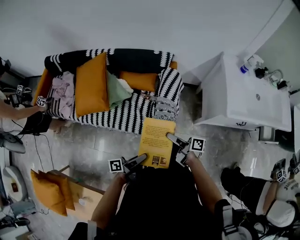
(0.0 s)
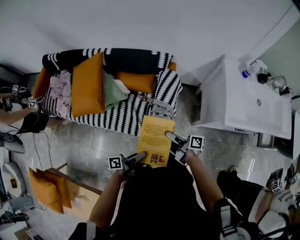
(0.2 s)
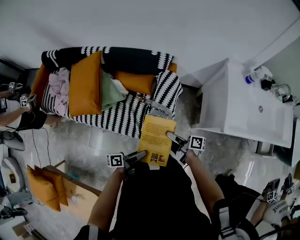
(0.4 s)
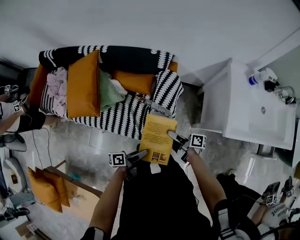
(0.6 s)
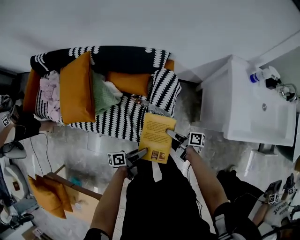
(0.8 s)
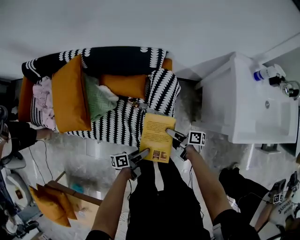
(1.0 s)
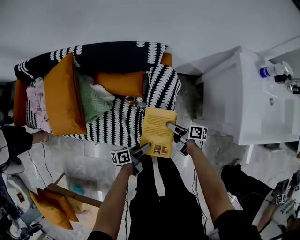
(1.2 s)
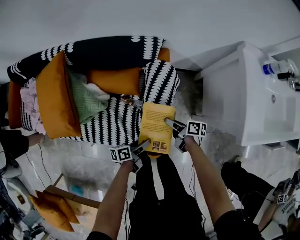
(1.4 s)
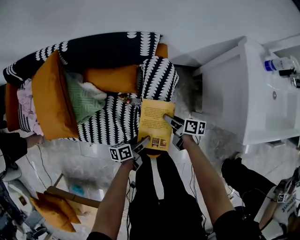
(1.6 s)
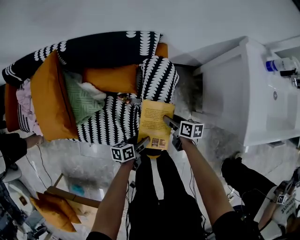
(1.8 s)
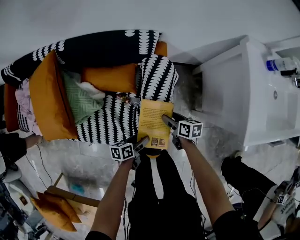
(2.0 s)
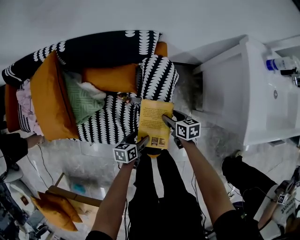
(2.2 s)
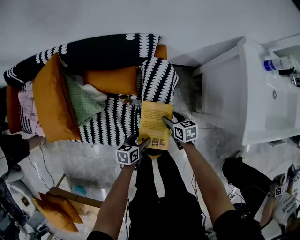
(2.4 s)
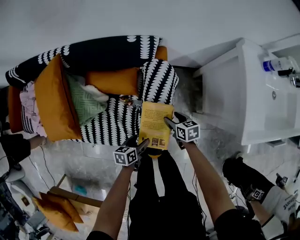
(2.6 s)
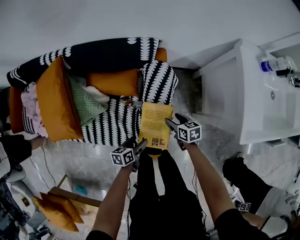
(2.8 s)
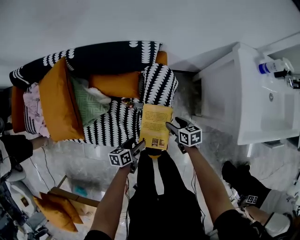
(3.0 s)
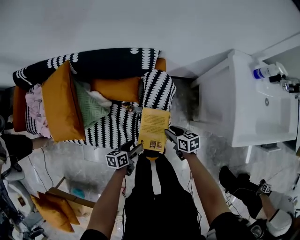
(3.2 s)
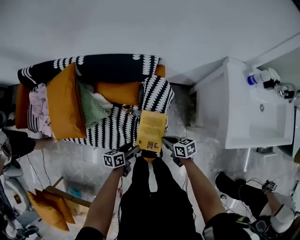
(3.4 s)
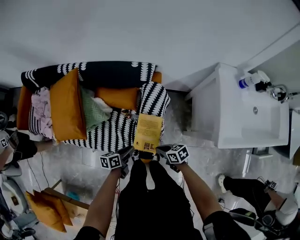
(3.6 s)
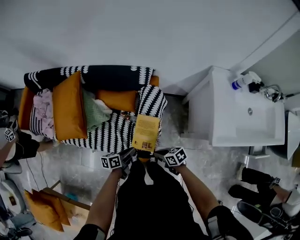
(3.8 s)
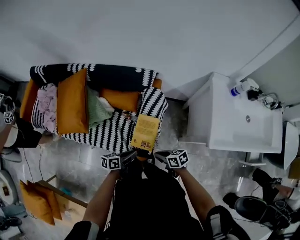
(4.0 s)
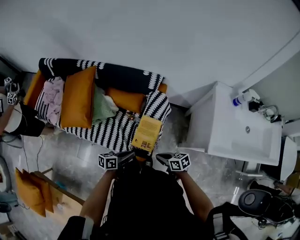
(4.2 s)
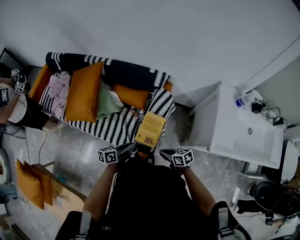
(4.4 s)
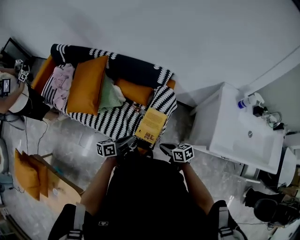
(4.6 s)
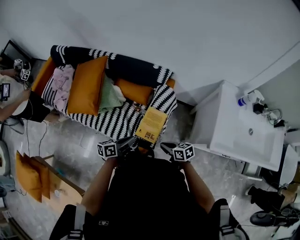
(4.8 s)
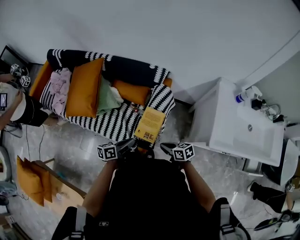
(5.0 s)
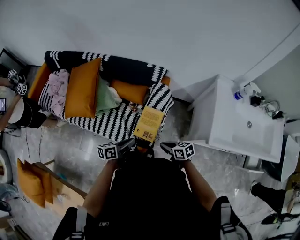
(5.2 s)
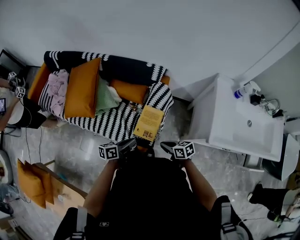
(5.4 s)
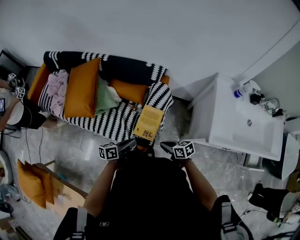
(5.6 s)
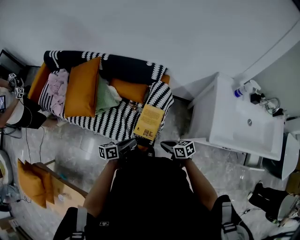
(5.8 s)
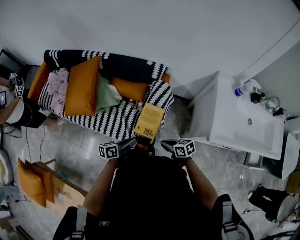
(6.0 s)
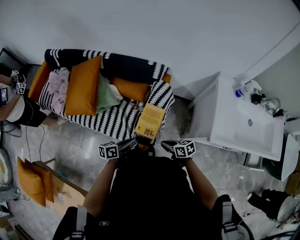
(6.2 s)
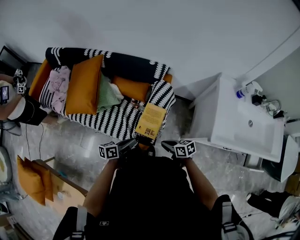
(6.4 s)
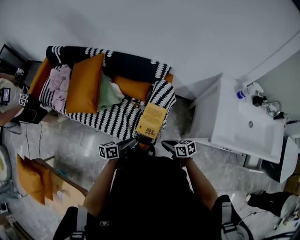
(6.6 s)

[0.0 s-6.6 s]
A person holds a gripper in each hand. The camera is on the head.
0.0 to 1.6 s: The right gripper travels downward by about 25 cm, and swivels some 30 degrees.
1.6 to 3.2 s: The right gripper shifts some 5 cm upward, and rotates some 30 degrees.
3.2 to 5.0 s: The right gripper moves upward, roughly 15 cm, turns by roughly 20 degrees, and closes up.

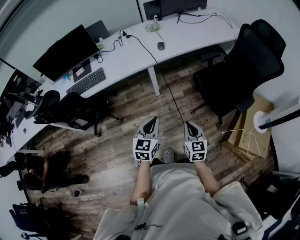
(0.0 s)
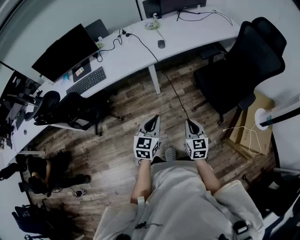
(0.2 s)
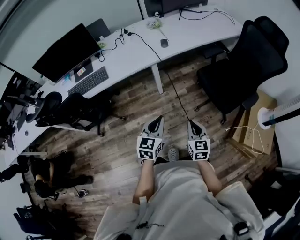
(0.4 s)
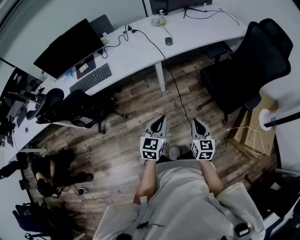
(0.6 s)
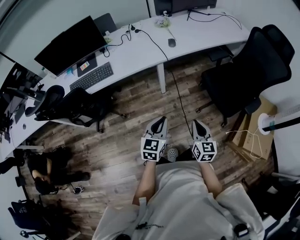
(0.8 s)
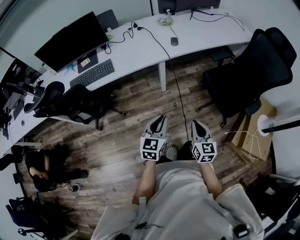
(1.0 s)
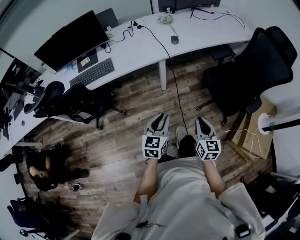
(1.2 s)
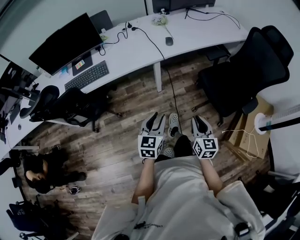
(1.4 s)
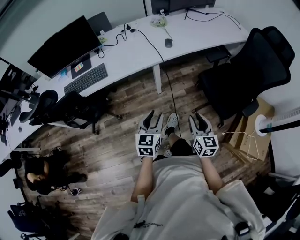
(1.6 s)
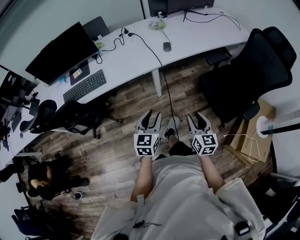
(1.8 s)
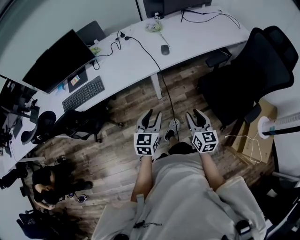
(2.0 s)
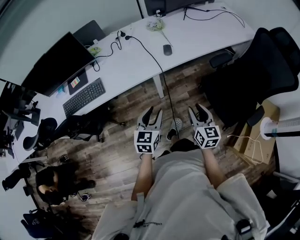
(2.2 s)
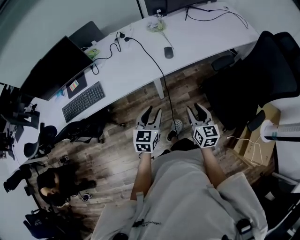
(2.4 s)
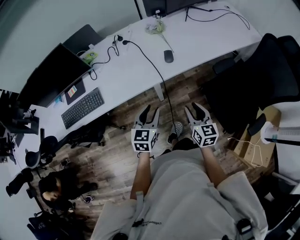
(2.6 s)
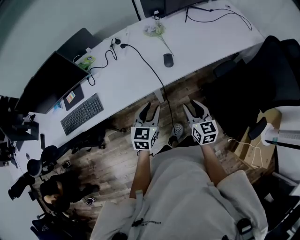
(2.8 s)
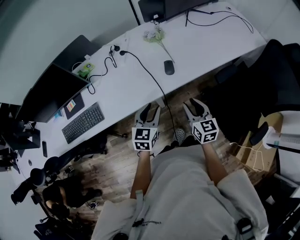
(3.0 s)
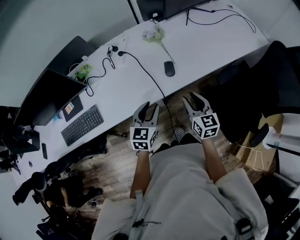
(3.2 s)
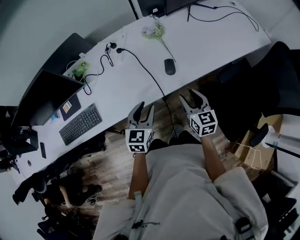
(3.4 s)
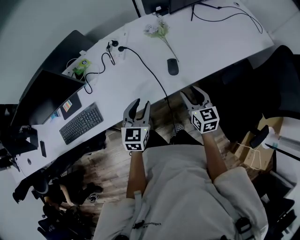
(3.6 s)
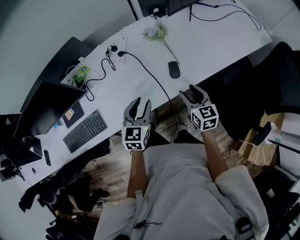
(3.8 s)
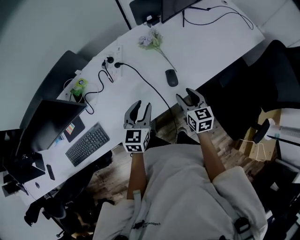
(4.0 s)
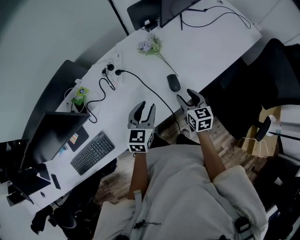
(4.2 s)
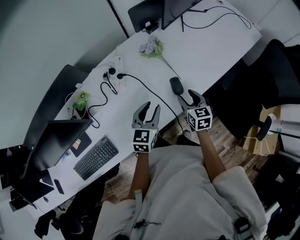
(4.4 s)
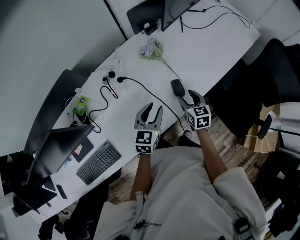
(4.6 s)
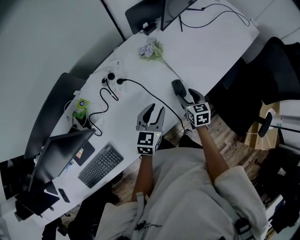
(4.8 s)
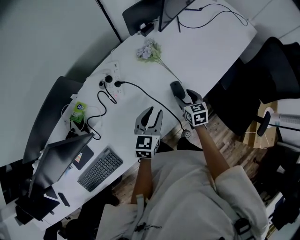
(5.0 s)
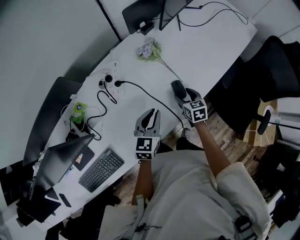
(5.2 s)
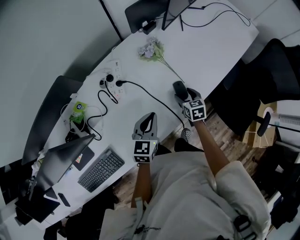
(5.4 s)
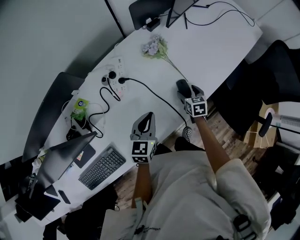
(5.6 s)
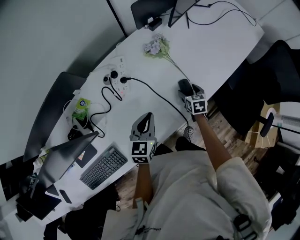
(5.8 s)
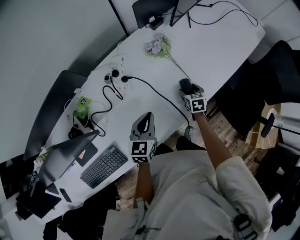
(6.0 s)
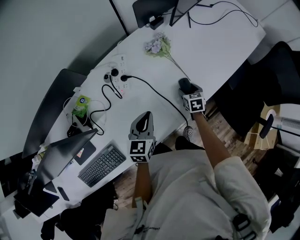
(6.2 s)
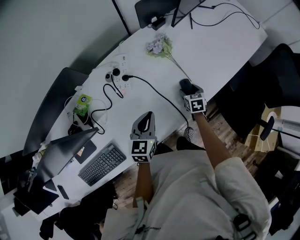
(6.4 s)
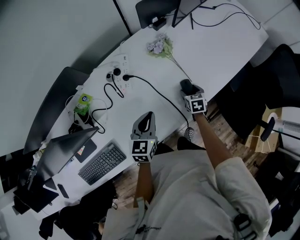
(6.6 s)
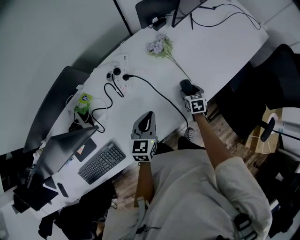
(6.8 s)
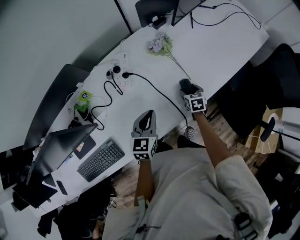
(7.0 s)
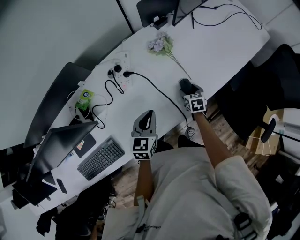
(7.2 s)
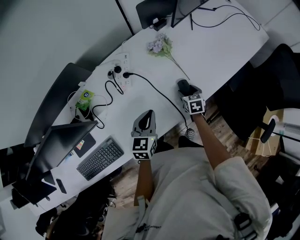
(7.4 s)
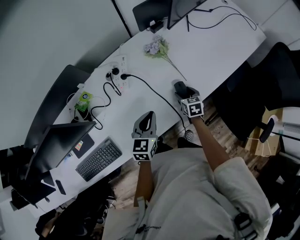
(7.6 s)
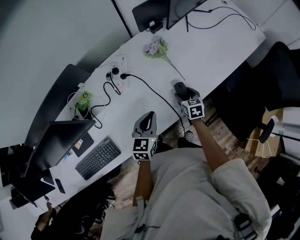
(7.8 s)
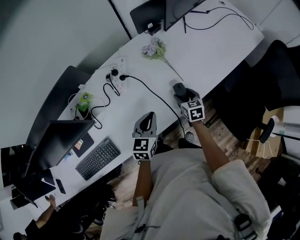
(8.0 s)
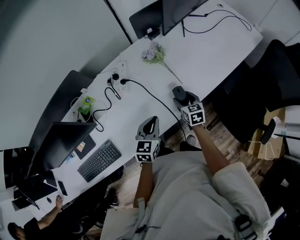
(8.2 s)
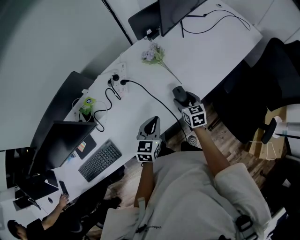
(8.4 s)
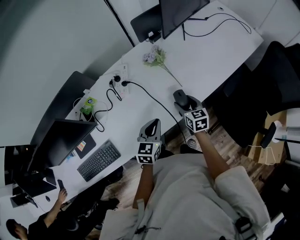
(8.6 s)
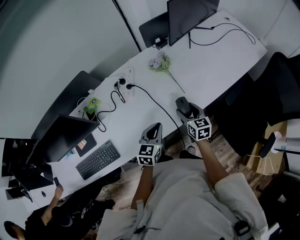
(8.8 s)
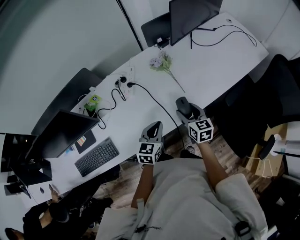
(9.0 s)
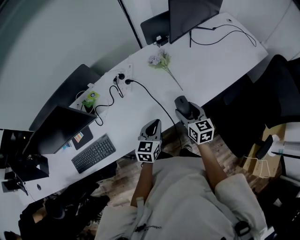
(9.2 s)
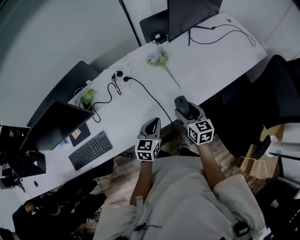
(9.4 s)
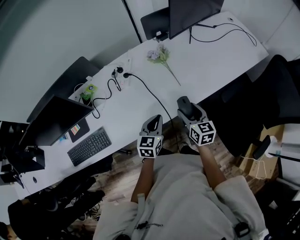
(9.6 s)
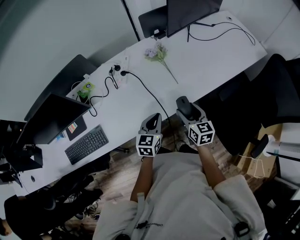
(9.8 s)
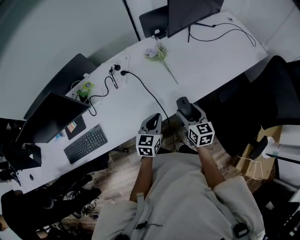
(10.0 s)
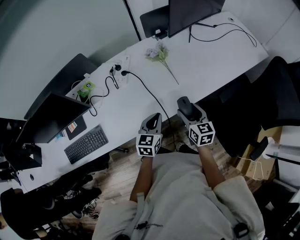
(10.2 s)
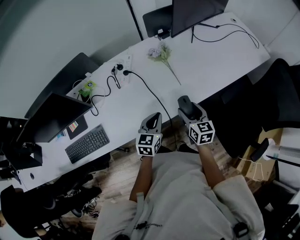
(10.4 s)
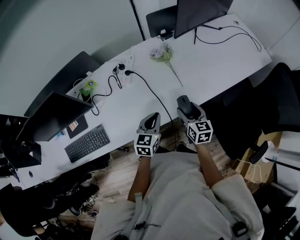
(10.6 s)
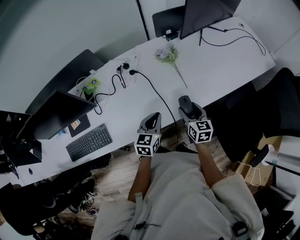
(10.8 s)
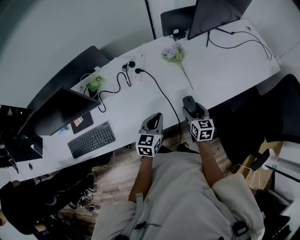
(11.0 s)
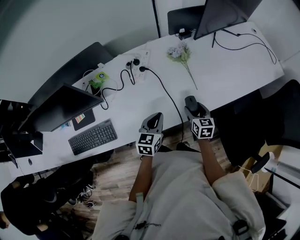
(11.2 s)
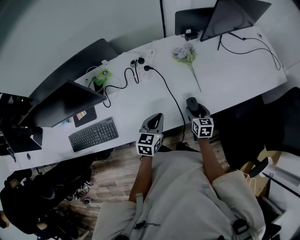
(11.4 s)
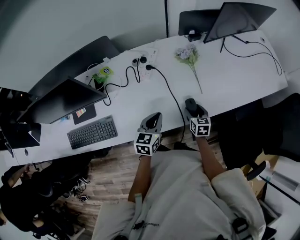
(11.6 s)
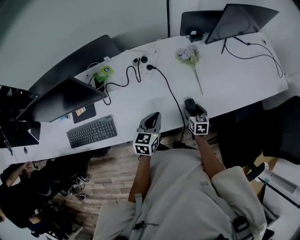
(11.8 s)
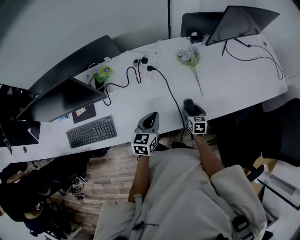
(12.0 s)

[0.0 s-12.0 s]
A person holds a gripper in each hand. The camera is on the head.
0.0 to 1.6 s: The right gripper shifts roughly 10 cm forward, and opens up; the left gripper moves forward and to the left, about 10 cm, and opens its fingers.
1.6 to 3.0 s: The two grippers go roughly 35 cm forward.
3.0 to 4.4 s: The grippers both shift forward by some 20 cm.
4.4 to 6.0 s: The right gripper travels downward and forward by approximately 15 cm, and changes its angle by approximately 20 degrees. Meanwhile the left gripper heads to the left, covering roughly 10 cm, and closes.
6.0 to 7.6 s: The right gripper shifts by about 5 cm; the left gripper ends up approximately 5 cm from where it was.
7.6 to 9.0 s: The left gripper goes approximately 5 cm to the right. The right gripper moves upward and backward, roughly 15 cm, and swivels roughly 20 degrees.
9.0 to 10.4 s: The right gripper moves some 5 cm.
10.4 to 12.0 s: The left gripper is displaced to the left by about 10 cm, while the right gripper travels downward, forward and to the left by some 20 cm, and changes its angle by some 20 degrees.

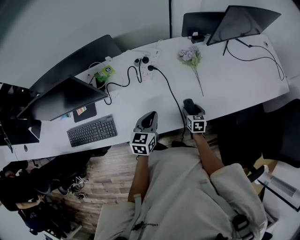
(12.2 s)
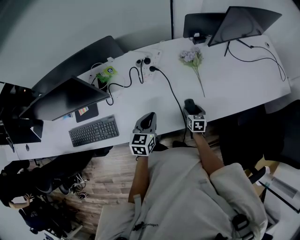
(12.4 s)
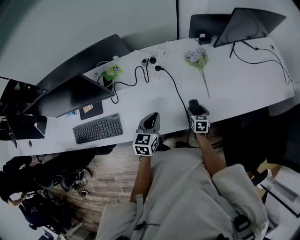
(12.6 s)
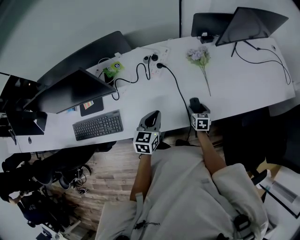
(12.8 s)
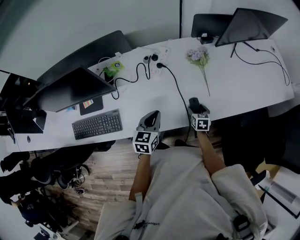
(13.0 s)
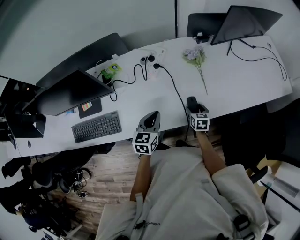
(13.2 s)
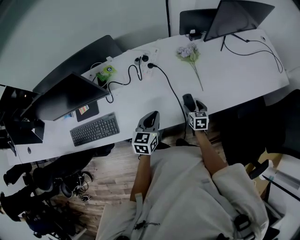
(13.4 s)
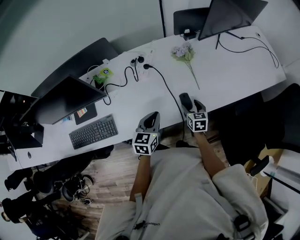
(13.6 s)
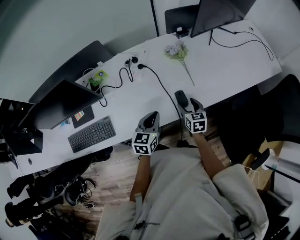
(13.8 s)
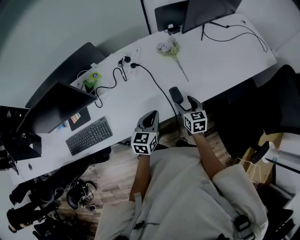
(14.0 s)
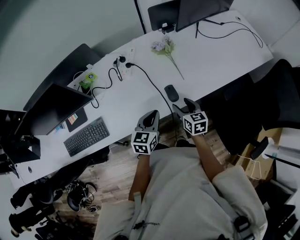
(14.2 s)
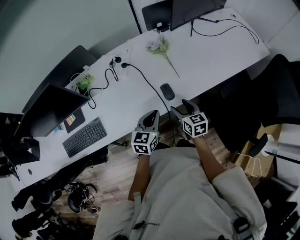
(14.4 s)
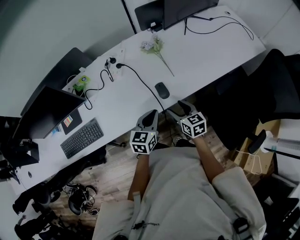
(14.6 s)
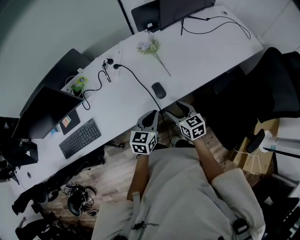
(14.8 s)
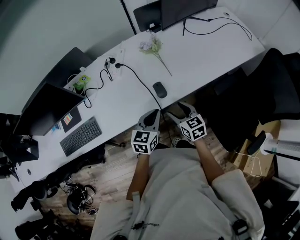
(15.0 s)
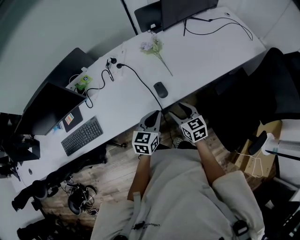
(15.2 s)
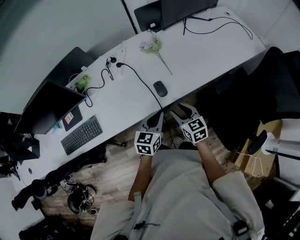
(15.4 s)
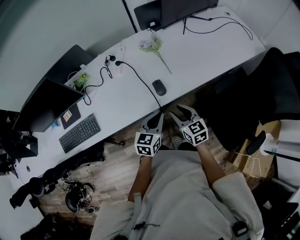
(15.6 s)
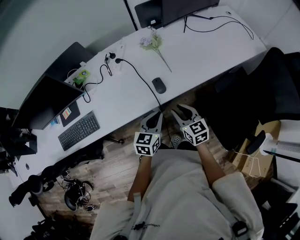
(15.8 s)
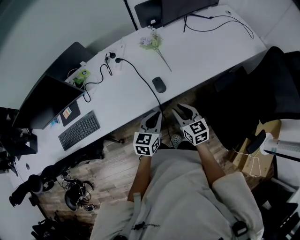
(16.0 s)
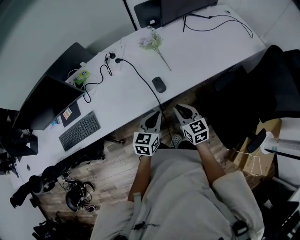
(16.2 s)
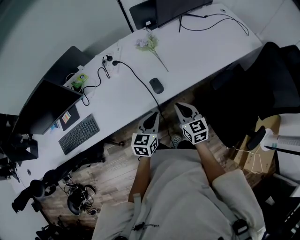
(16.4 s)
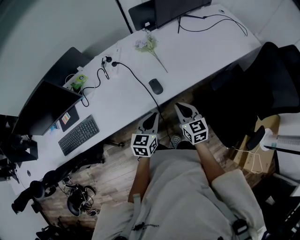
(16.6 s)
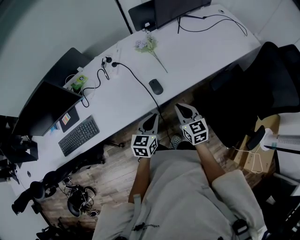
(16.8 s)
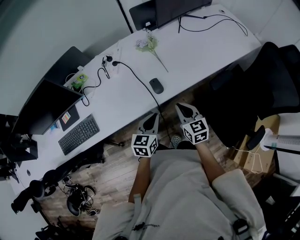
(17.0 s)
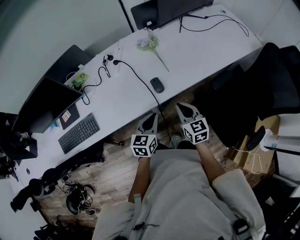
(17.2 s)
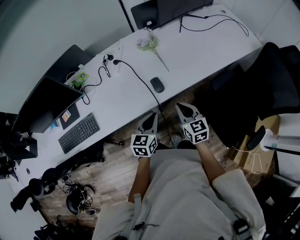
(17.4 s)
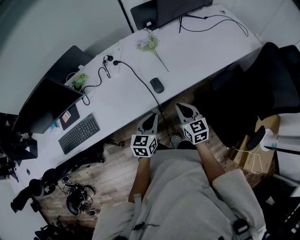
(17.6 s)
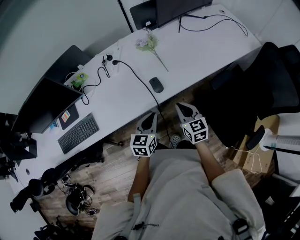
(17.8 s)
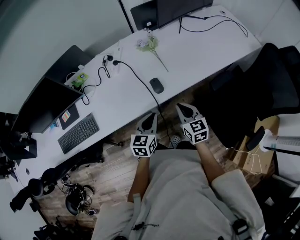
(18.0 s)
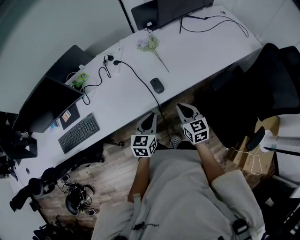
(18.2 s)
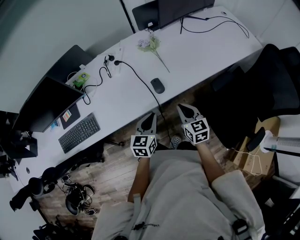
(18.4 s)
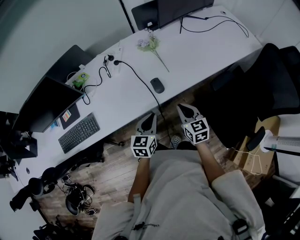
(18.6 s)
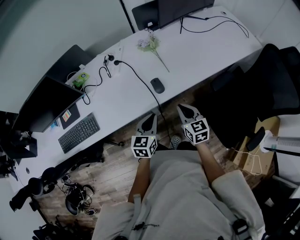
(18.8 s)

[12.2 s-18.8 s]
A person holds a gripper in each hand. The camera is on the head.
12.2 to 13.8 s: The left gripper moves some 5 cm. The right gripper shifts approximately 10 cm upward.
13.8 to 15.4 s: The left gripper is displaced to the right and backward by roughly 15 cm, while the right gripper shifts about 15 cm backward, to the right and upward.
15.4 to 17.2 s: The right gripper closes its fingers.
17.2 to 18.8 s: Neither gripper changes place.
